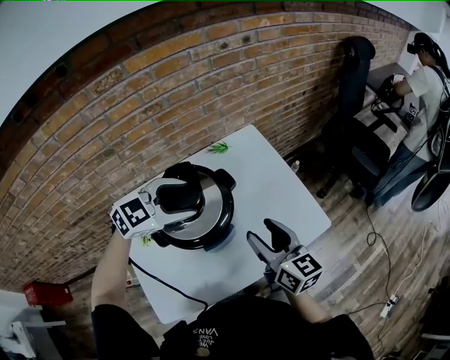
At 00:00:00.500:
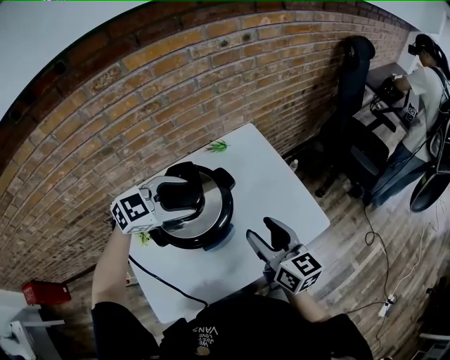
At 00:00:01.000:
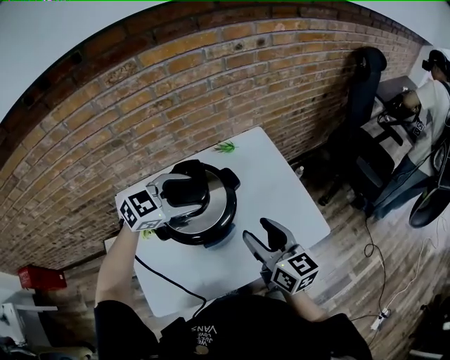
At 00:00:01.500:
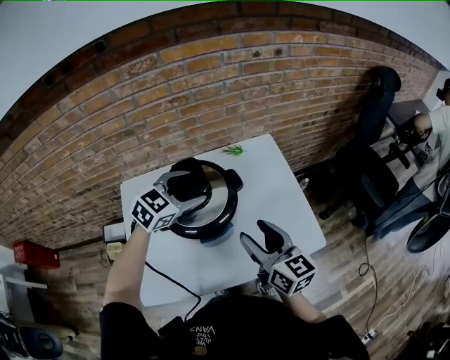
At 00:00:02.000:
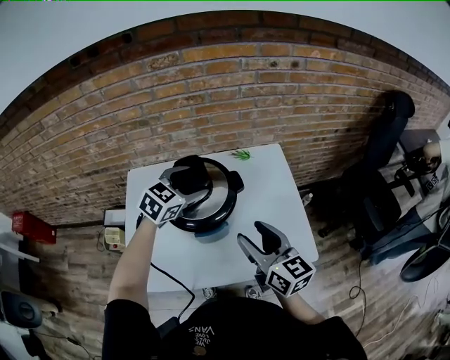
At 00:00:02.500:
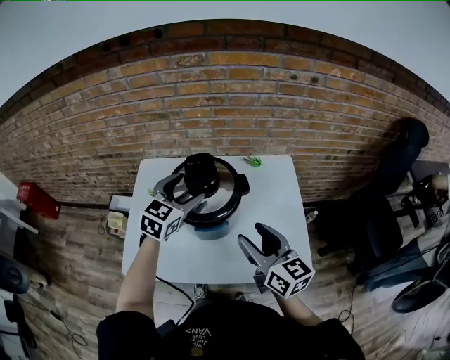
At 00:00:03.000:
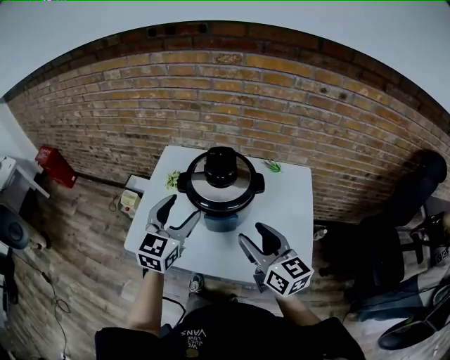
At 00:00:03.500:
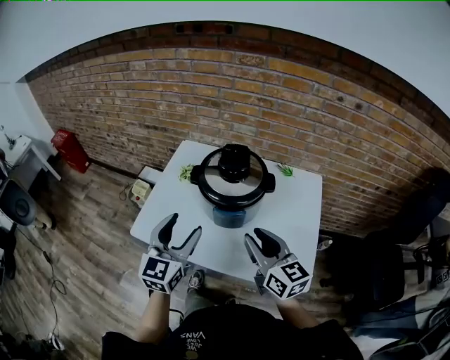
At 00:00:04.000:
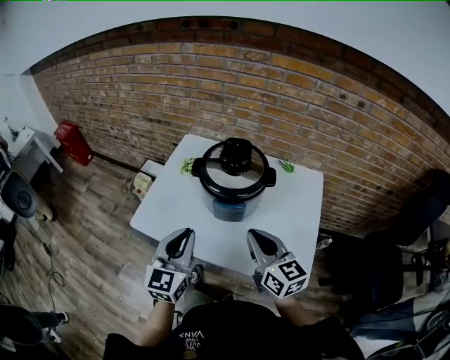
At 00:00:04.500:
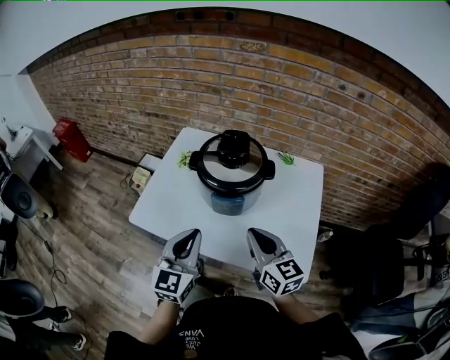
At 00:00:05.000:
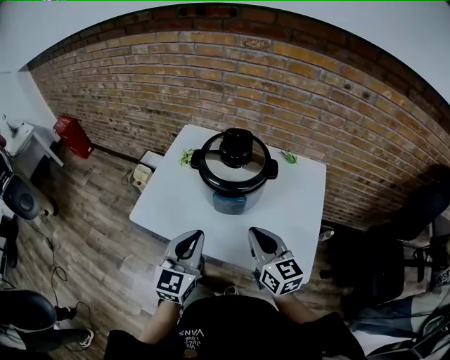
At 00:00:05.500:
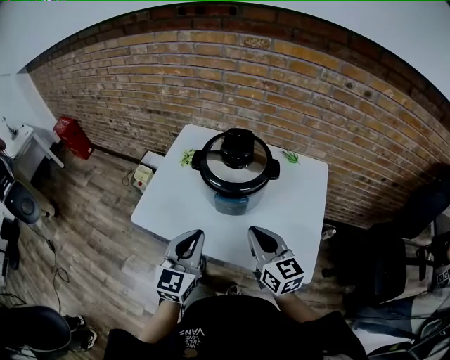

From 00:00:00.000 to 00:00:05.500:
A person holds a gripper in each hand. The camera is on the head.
From 00:00:00.000 to 00:00:02.000: The right gripper rotates some 20 degrees, while the left gripper rotates about 40 degrees.
From 00:00:02.000 to 00:00:03.500: The left gripper ends up approximately 25 cm from where it was, and rotates approximately 60 degrees. The right gripper swivels approximately 20 degrees, and closes up.
From 00:00:03.500 to 00:00:05.500: The left gripper is displaced backward by some 5 cm, and closes its fingers, while the right gripper closes its fingers.

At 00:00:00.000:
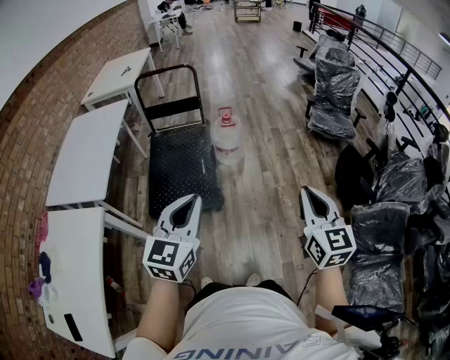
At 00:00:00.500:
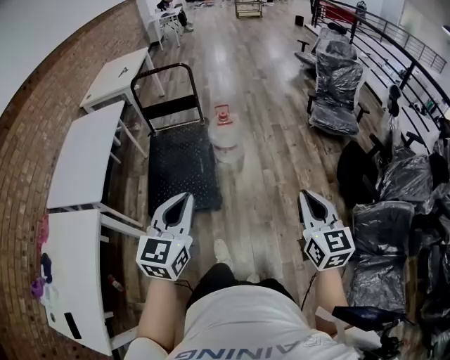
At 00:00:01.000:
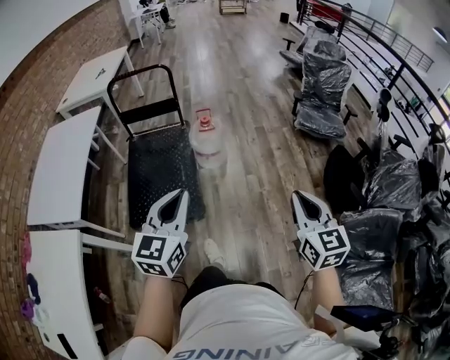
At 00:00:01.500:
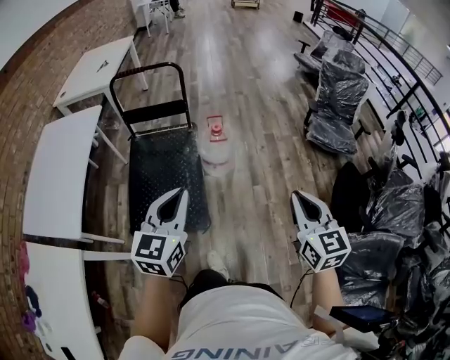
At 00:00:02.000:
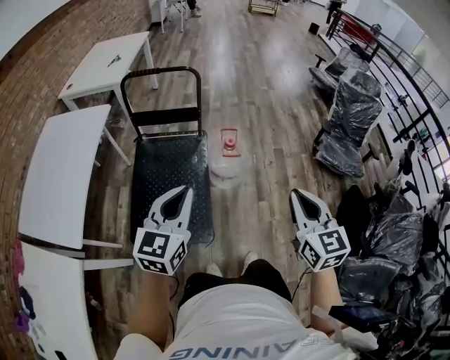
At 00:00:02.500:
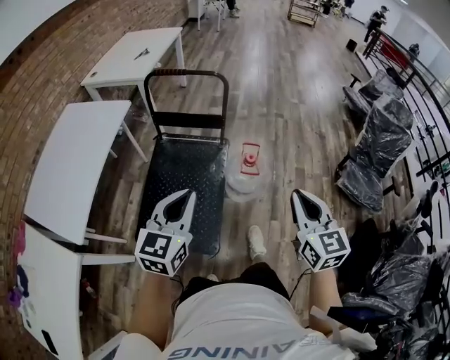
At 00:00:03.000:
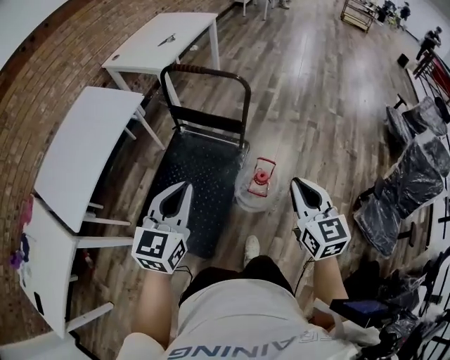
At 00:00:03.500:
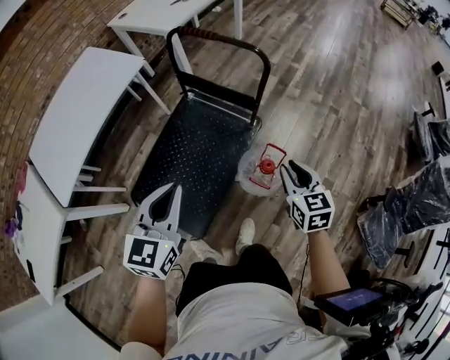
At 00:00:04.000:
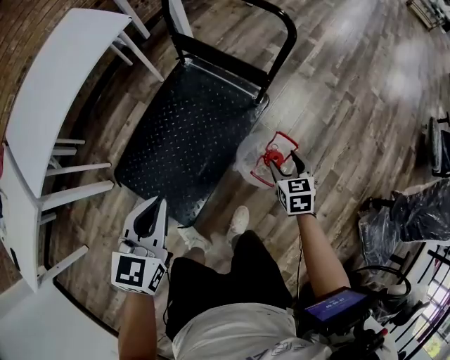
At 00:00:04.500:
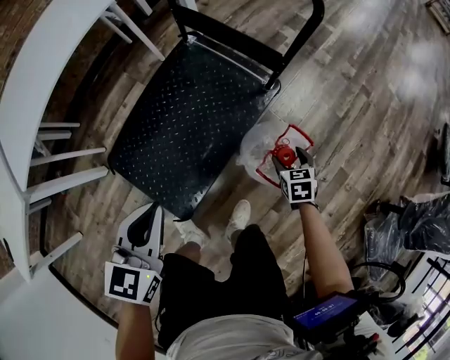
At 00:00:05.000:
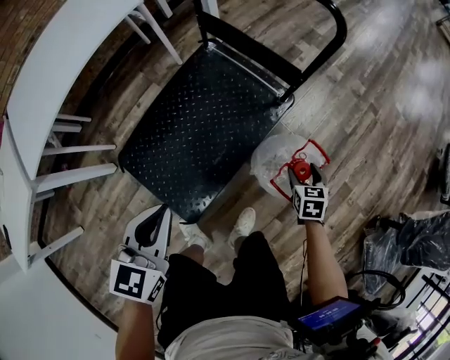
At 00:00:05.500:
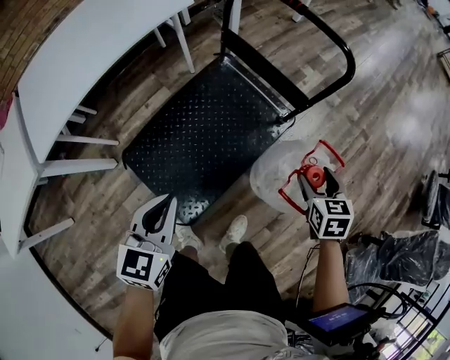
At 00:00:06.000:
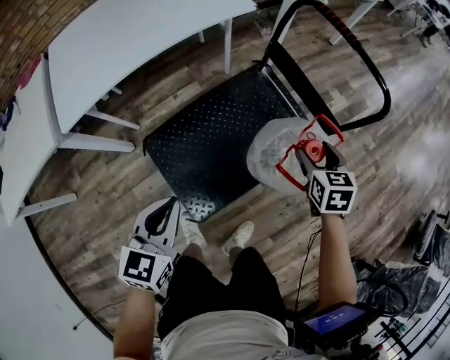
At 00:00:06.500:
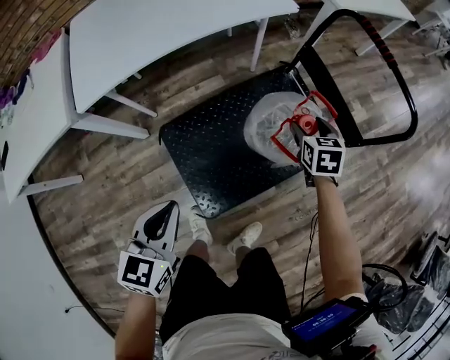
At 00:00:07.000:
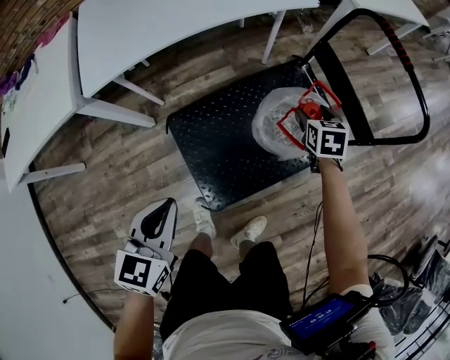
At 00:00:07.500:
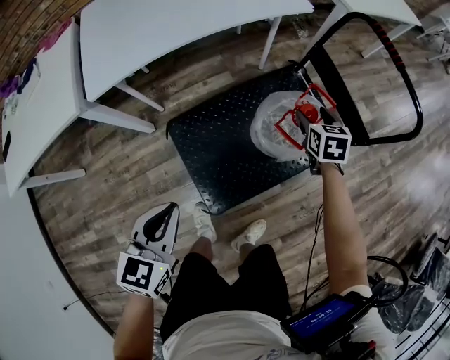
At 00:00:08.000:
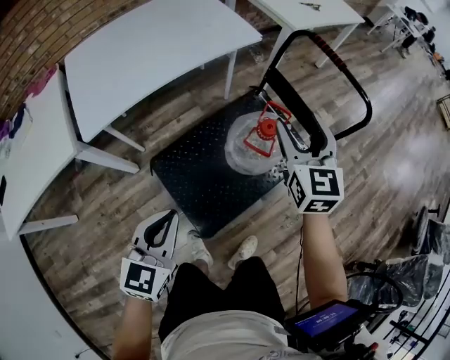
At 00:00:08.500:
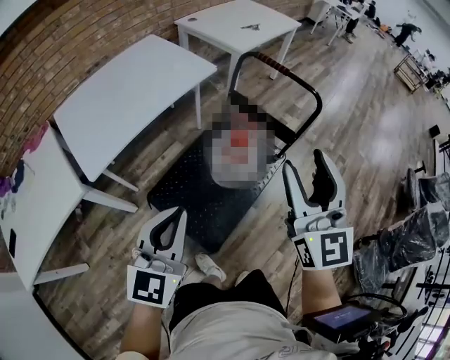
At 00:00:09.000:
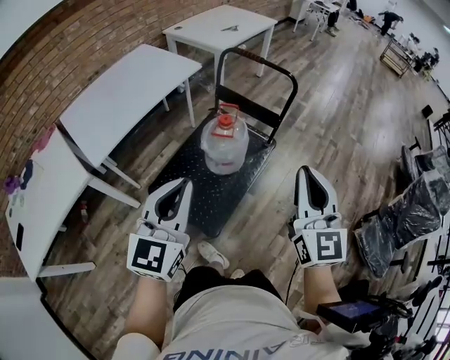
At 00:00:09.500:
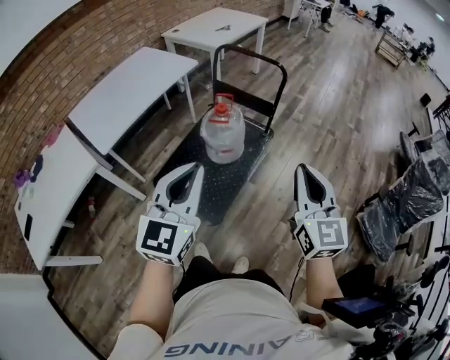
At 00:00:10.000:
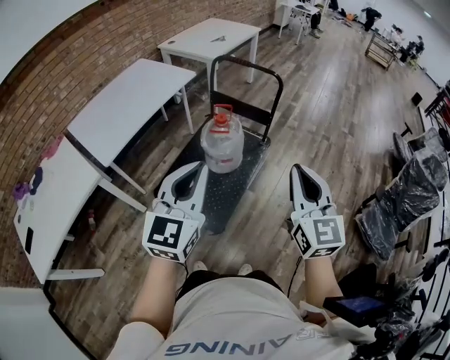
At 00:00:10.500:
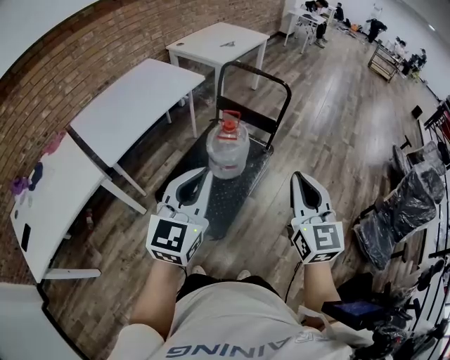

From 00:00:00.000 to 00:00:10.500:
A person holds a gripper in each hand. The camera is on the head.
From 00:00:00.000 to 00:00:02.000: Both grippers travel together forward, some 35 cm.
From 00:00:02.000 to 00:00:04.000: The left gripper shifts roughly 20 cm downward, and changes its angle by some 40 degrees; the right gripper moves roughly 60 cm, points its fingers some 30 degrees further downward, and opens its fingers.
From 00:00:04.000 to 00:00:06.500: The left gripper is displaced to the left by approximately 20 cm, and swivels some 30 degrees. The right gripper moves to the left and forward, approximately 35 cm, and swivels about 20 degrees.
From 00:00:06.500 to 00:00:08.500: The right gripper heads upward and backward, covering some 50 cm, and angles its fingers upward, by some 50 degrees. The left gripper is displaced upward by about 20 cm, and changes its angle by roughly 30 degrees.
From 00:00:08.500 to 00:00:10.500: The left gripper goes approximately 15 cm backward, upward and to the right; the right gripper moves backward, about 20 cm, and closes its fingers.
